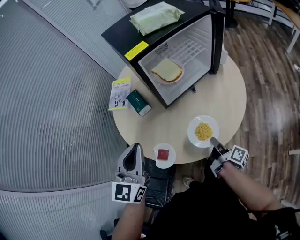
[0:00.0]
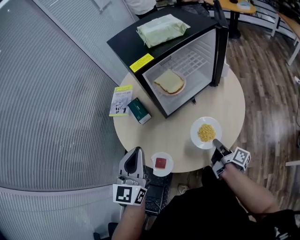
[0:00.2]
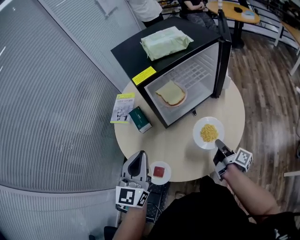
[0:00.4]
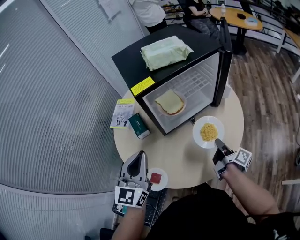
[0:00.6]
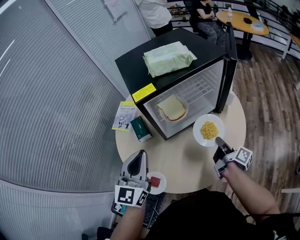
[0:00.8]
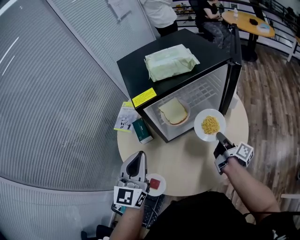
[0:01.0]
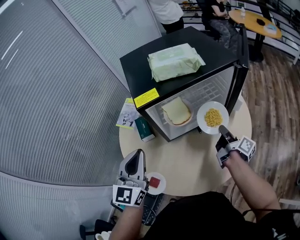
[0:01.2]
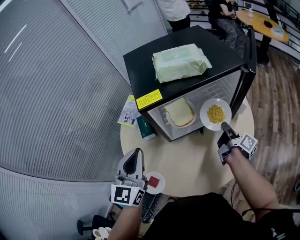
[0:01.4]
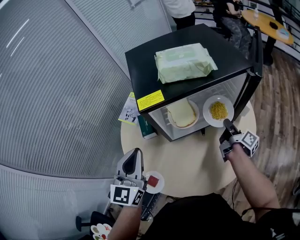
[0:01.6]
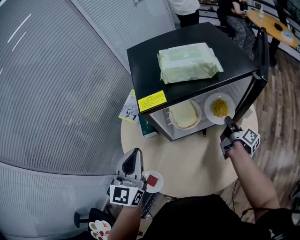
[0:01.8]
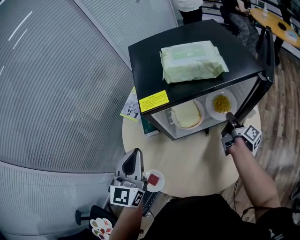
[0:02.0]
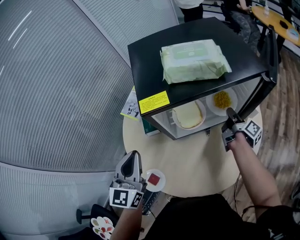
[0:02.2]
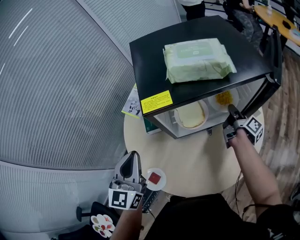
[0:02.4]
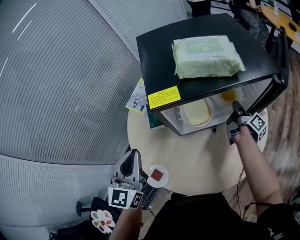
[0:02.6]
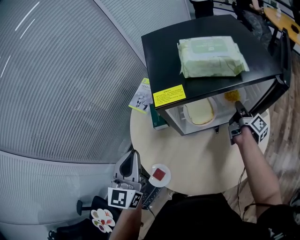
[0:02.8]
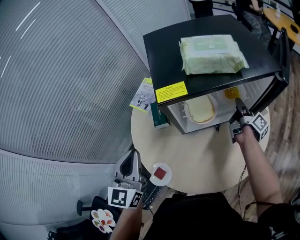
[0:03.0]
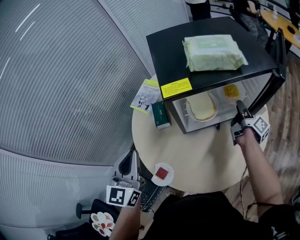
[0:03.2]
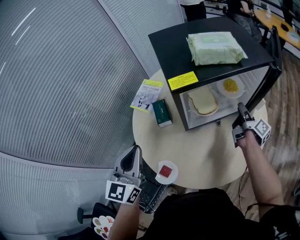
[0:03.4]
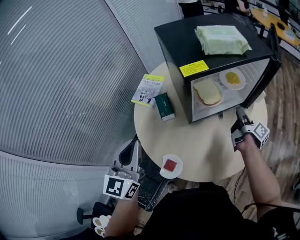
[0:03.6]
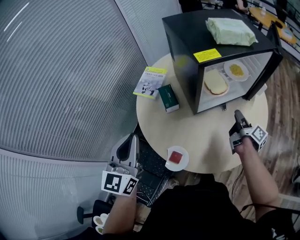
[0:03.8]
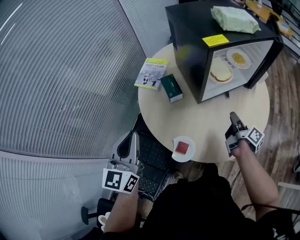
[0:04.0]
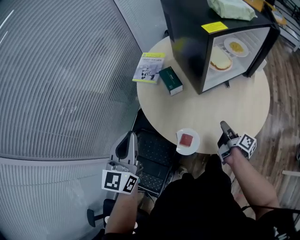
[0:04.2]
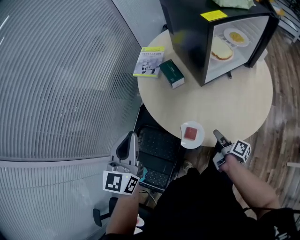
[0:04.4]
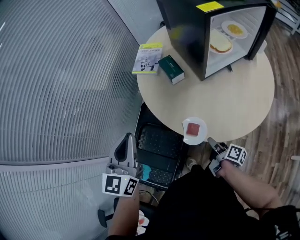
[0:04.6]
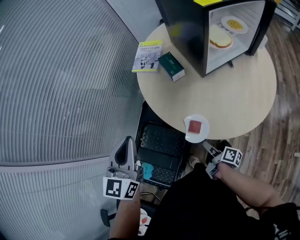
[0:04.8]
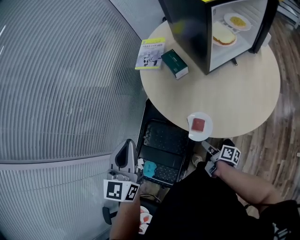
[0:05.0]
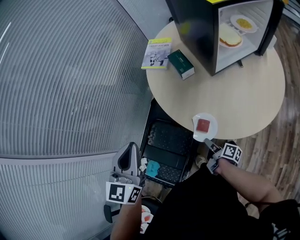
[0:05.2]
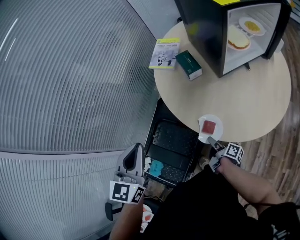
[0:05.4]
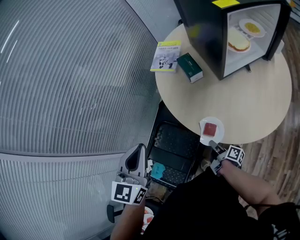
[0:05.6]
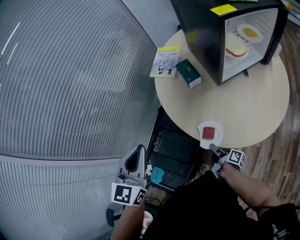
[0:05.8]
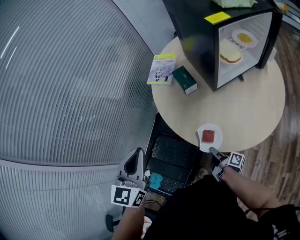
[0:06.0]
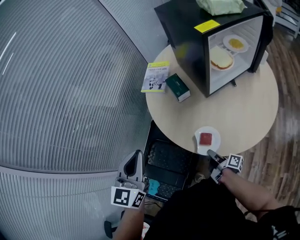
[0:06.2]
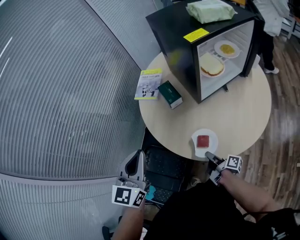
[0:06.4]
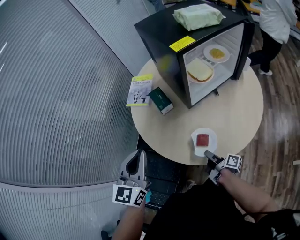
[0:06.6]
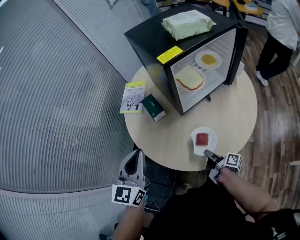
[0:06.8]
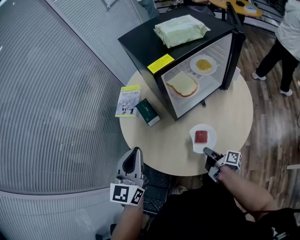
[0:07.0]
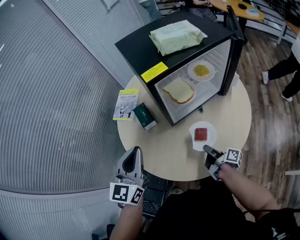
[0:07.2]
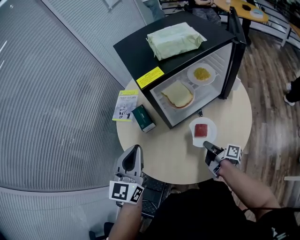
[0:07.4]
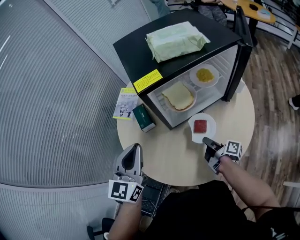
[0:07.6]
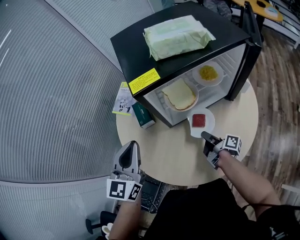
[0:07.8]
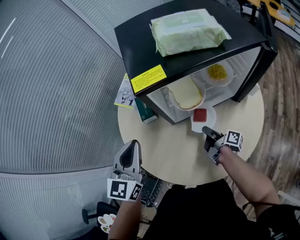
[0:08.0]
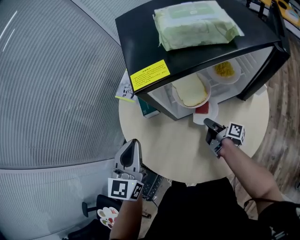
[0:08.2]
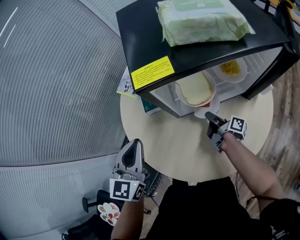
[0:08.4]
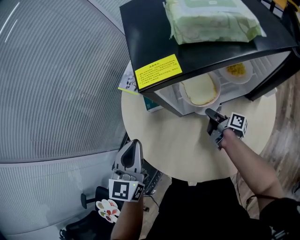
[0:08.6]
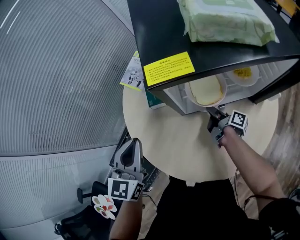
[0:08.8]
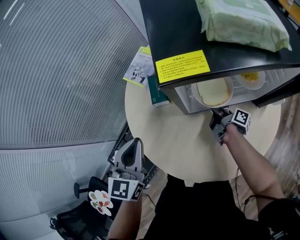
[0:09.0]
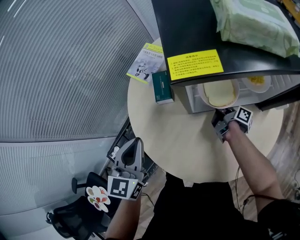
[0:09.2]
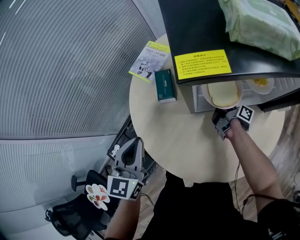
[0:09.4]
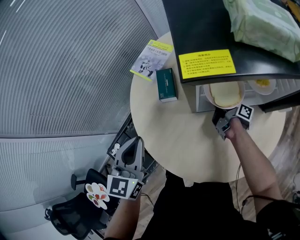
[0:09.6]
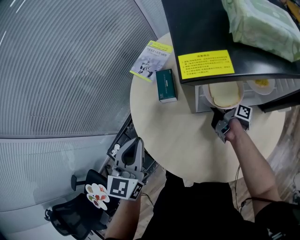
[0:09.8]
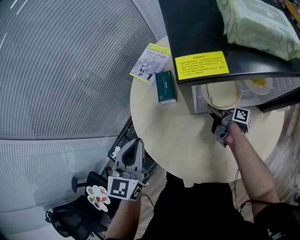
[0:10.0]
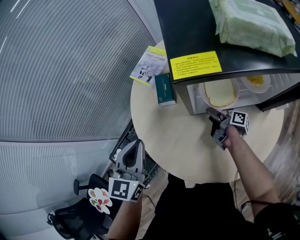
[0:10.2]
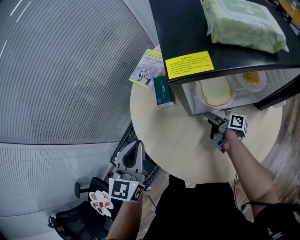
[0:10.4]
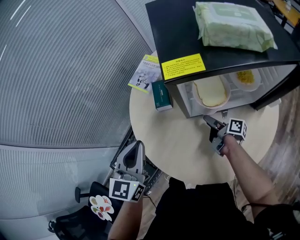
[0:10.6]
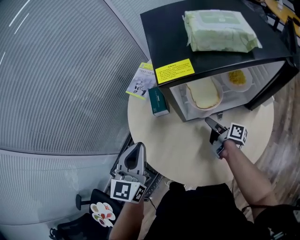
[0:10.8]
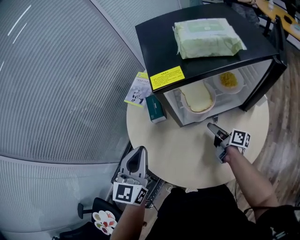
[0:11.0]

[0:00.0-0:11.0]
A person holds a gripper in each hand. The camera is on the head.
0:00.0 to 0:01.6: The left gripper heads forward, covering some 15 cm, while the right gripper travels forward by some 35 cm.
0:01.6 to 0:03.2: The right gripper is displaced forward by roughly 5 cm. Meanwhile the left gripper goes about 10 cm to the left.
0:03.2 to 0:04.8: The left gripper moves to the left and backward, roughly 25 cm. The right gripper goes roughly 60 cm backward, to the left and downward, and rotates about 30 degrees.
0:04.8 to 0:06.2: The right gripper shifts by approximately 5 cm.
0:06.2 to 0:07.8: The two grippers go roughly 30 cm to the right and forward.
0:07.8 to 0:09.4: The right gripper moves forward, approximately 20 cm; the left gripper shifts roughly 10 cm downward and to the left, and rotates some 20 degrees.
0:09.4 to 0:11.0: The left gripper is displaced upward by some 5 cm. Meanwhile the right gripper moves backward and upward, roughly 15 cm, rotates approximately 30 degrees, and opens.

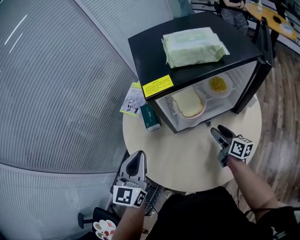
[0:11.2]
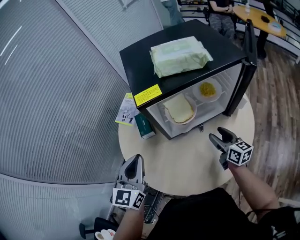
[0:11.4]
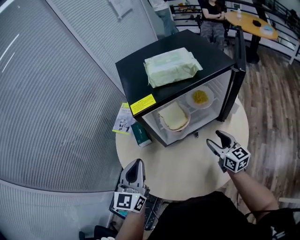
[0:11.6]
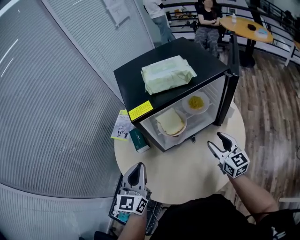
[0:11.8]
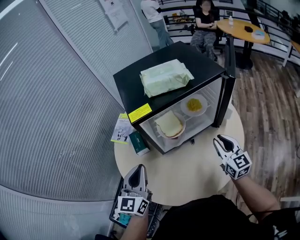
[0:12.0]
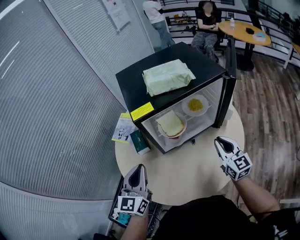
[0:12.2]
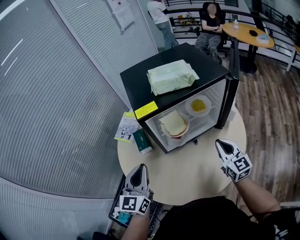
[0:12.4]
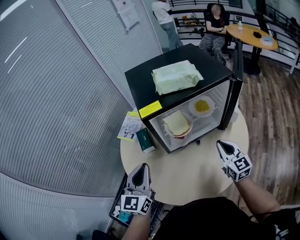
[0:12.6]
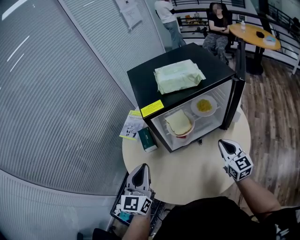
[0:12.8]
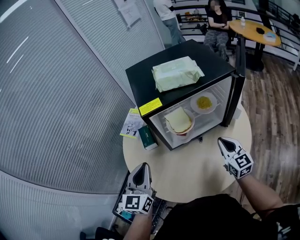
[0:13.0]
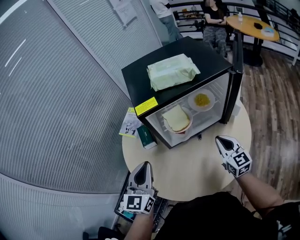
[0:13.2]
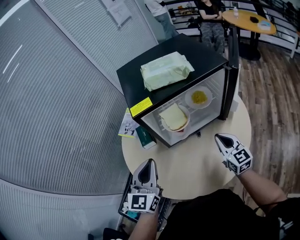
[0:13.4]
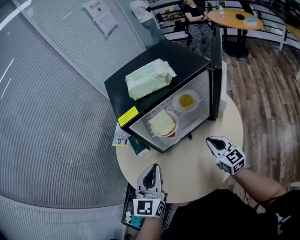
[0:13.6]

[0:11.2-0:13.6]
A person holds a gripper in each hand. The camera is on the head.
0:11.2 to 0:12.4: The right gripper moves upward, backward and to the right, some 15 cm, twists approximately 40 degrees counterclockwise, seen from behind, and closes up.
0:12.4 to 0:13.6: The left gripper heads to the right, covering roughly 10 cm.

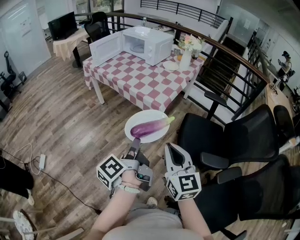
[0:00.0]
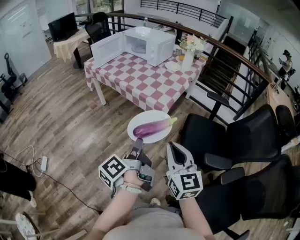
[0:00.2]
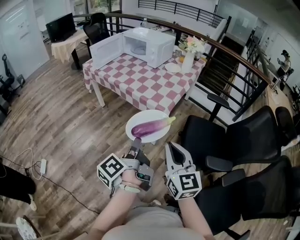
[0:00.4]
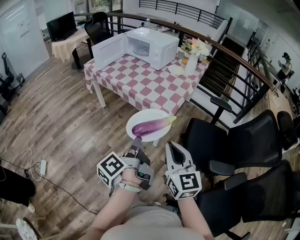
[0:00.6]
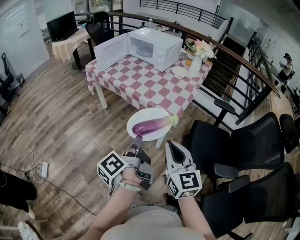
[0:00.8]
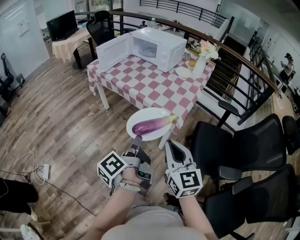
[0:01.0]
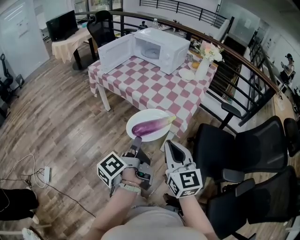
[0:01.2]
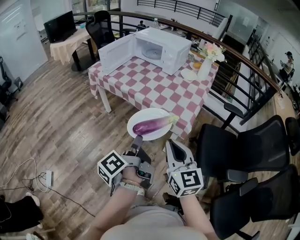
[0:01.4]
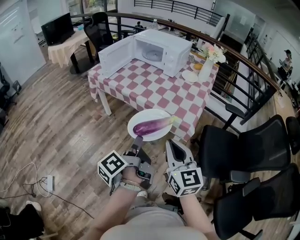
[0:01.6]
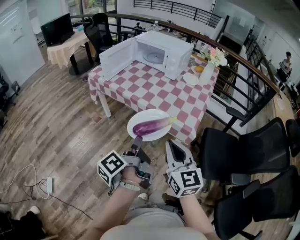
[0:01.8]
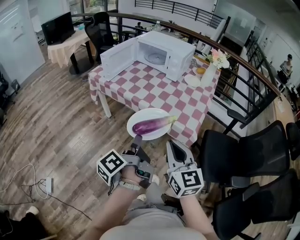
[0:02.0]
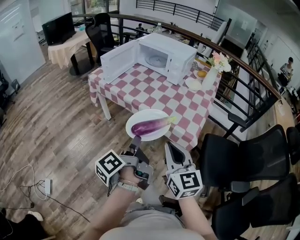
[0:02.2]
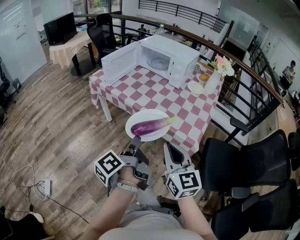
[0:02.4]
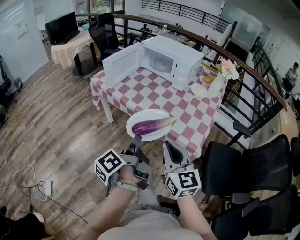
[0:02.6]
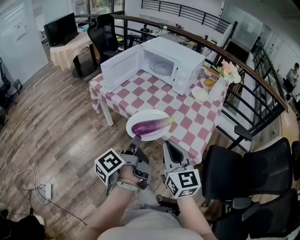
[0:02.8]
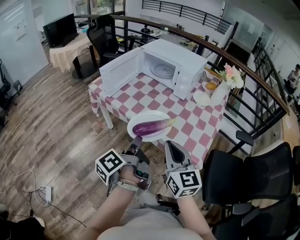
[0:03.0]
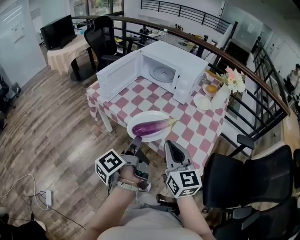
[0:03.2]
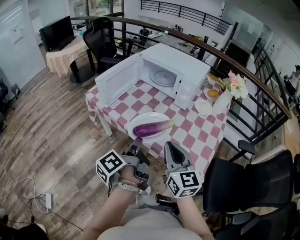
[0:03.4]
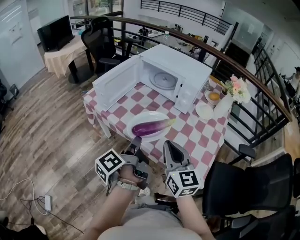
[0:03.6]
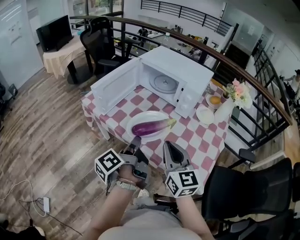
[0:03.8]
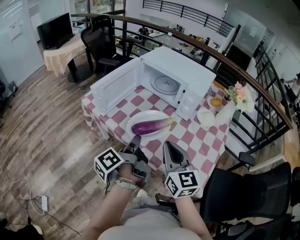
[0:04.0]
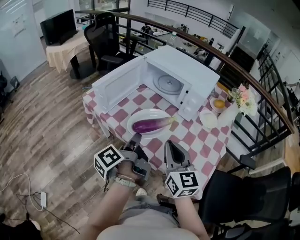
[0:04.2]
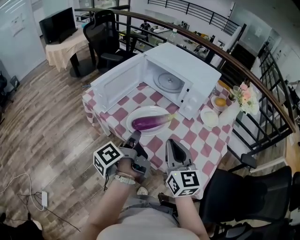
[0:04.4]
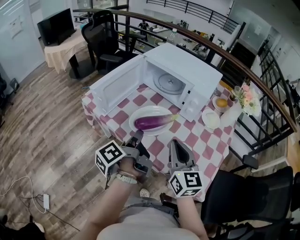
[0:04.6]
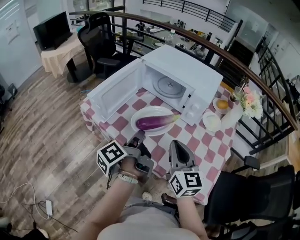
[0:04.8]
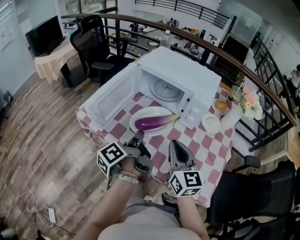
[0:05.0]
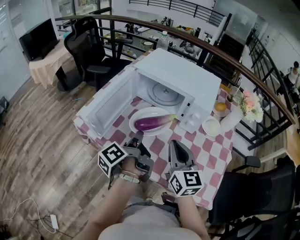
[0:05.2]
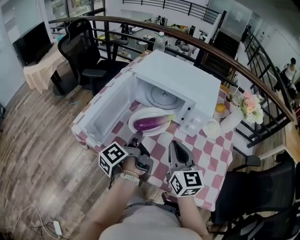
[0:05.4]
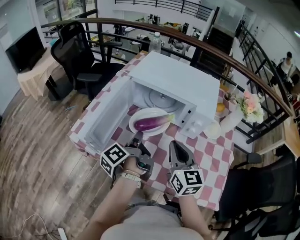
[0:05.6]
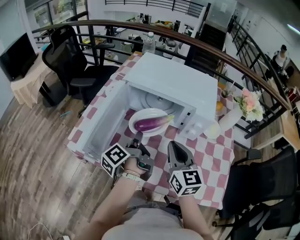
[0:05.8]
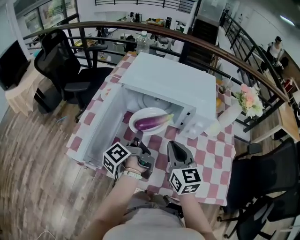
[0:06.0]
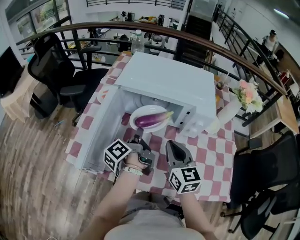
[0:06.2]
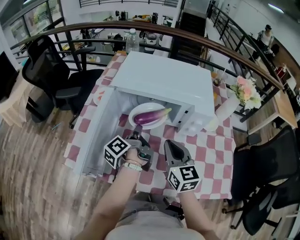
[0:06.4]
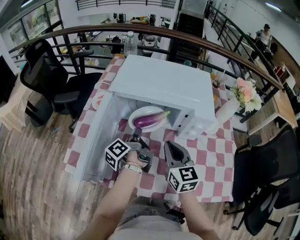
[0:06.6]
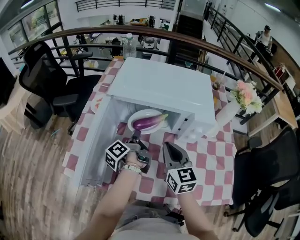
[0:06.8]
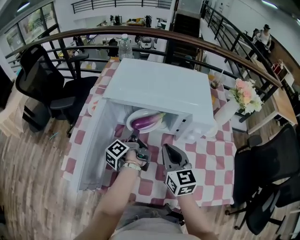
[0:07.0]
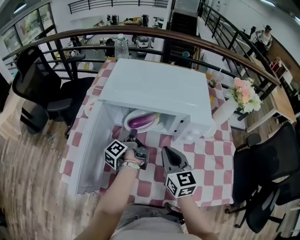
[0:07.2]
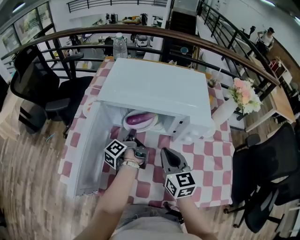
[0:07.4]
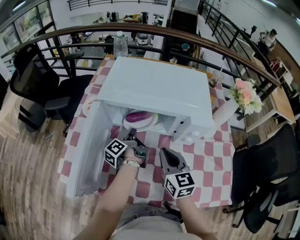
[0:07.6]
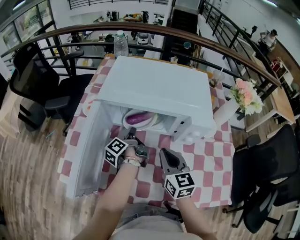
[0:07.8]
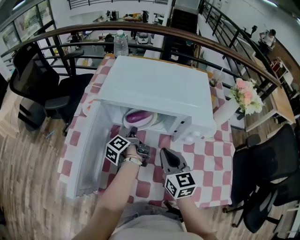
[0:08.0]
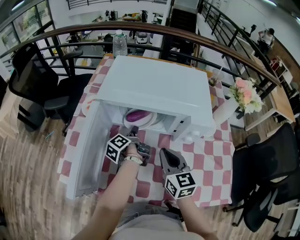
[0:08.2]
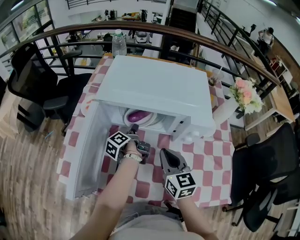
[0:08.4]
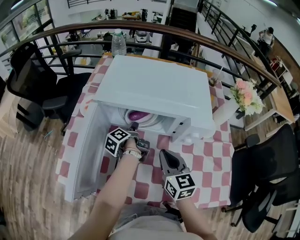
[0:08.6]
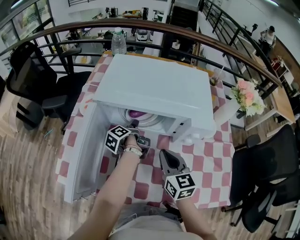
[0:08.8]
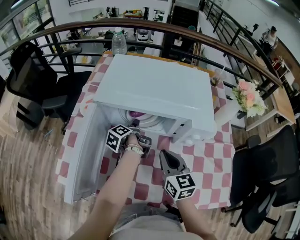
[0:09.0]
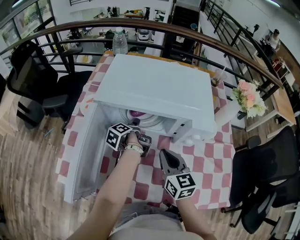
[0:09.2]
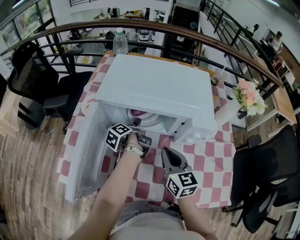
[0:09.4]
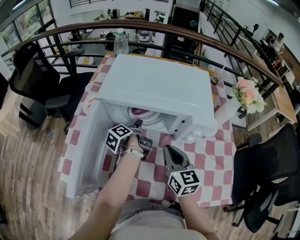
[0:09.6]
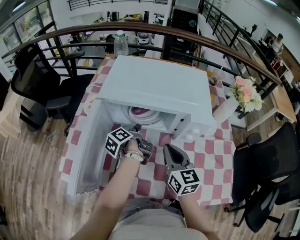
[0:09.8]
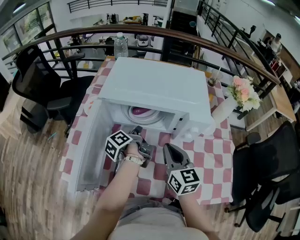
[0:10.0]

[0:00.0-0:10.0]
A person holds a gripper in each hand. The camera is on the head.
0:00.0 to 0:01.4: The right gripper shifts by about 25 cm.
0:01.4 to 0:02.8: The right gripper shifts by about 20 cm.
0:02.8 to 0:04.2: The right gripper ends up about 20 cm from where it was.
0:04.2 to 0:05.8: The right gripper shifts by roughly 20 cm.
0:05.8 to 0:07.2: The right gripper moves about 10 cm.
